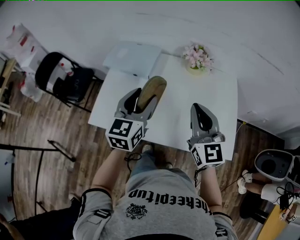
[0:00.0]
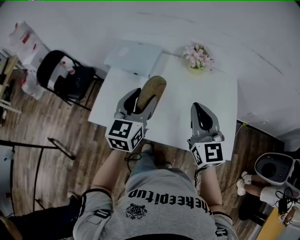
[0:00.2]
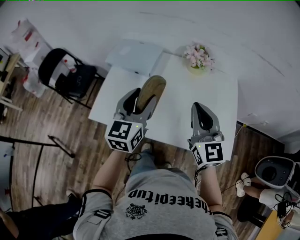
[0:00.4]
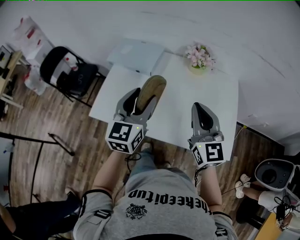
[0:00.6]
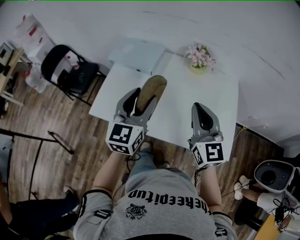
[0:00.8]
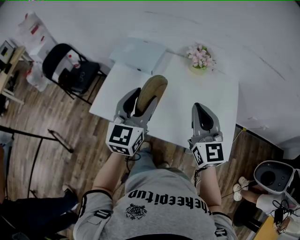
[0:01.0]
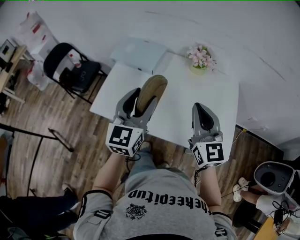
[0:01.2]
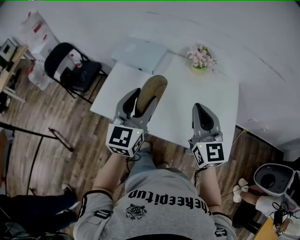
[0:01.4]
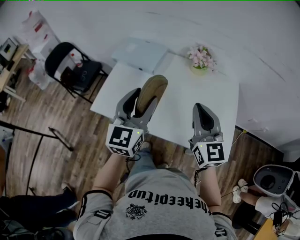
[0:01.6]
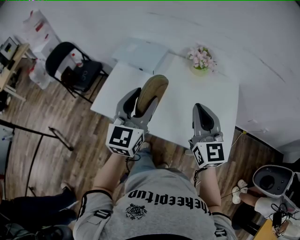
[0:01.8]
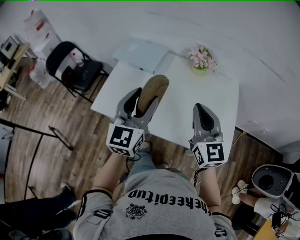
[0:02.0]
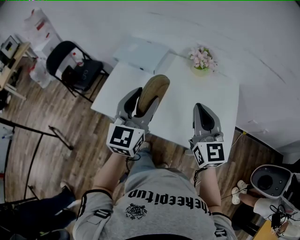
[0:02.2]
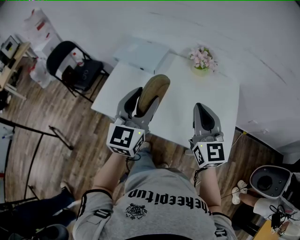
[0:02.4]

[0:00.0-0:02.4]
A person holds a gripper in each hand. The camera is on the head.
0:00.0 to 0:01.2: The left gripper is displaced backward by approximately 5 cm.
0:01.2 to 0:02.4: The grippers stay close to where they were, moving slightly.

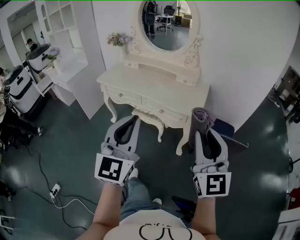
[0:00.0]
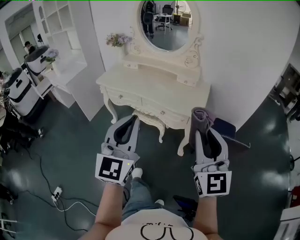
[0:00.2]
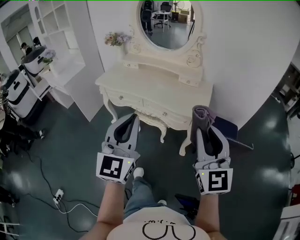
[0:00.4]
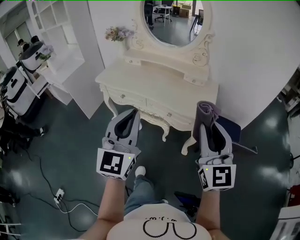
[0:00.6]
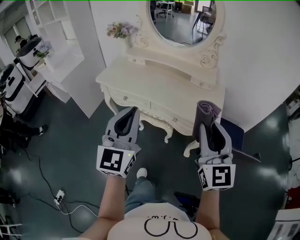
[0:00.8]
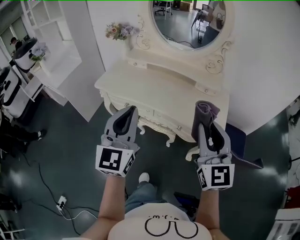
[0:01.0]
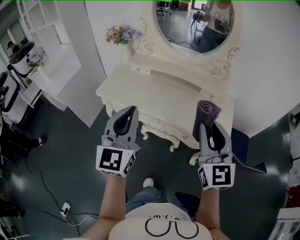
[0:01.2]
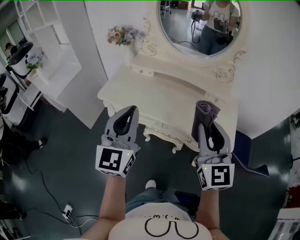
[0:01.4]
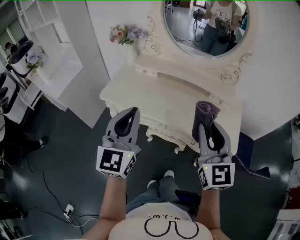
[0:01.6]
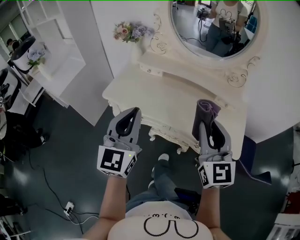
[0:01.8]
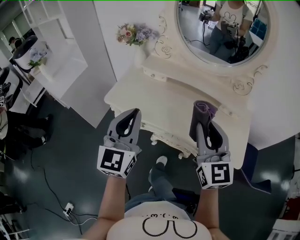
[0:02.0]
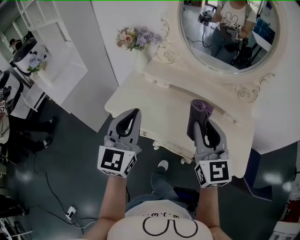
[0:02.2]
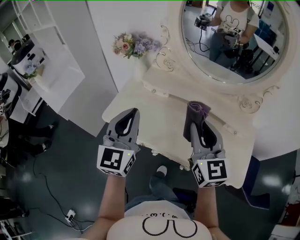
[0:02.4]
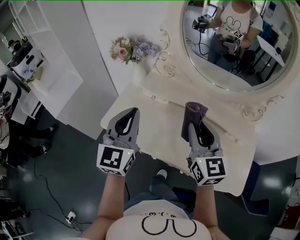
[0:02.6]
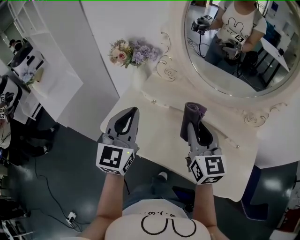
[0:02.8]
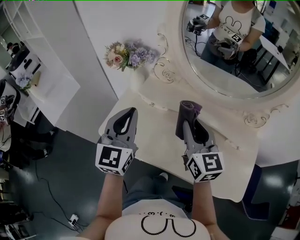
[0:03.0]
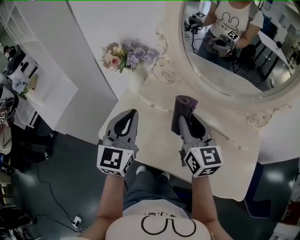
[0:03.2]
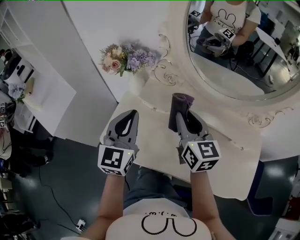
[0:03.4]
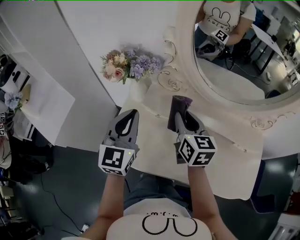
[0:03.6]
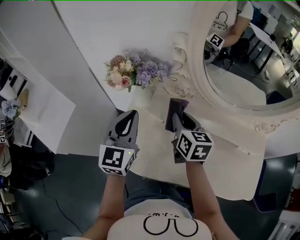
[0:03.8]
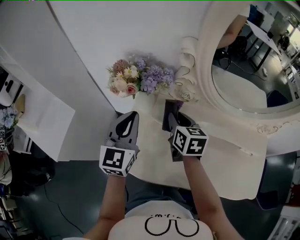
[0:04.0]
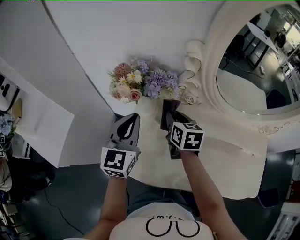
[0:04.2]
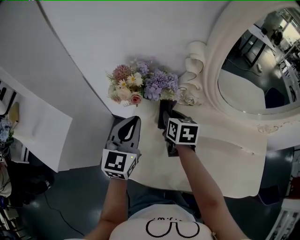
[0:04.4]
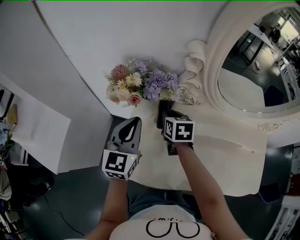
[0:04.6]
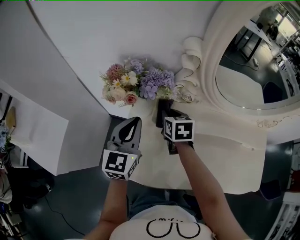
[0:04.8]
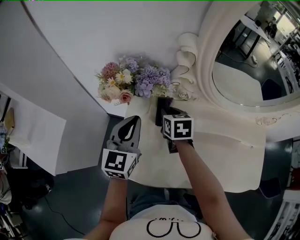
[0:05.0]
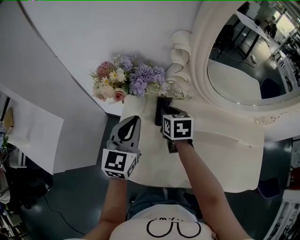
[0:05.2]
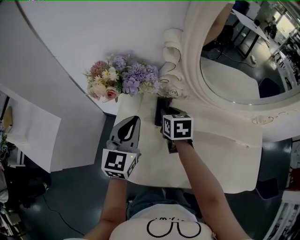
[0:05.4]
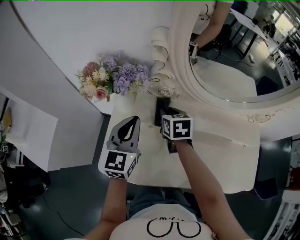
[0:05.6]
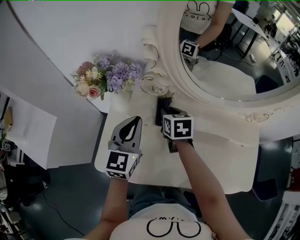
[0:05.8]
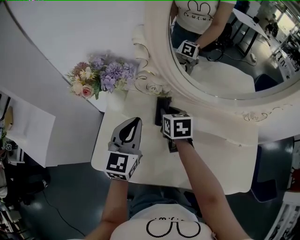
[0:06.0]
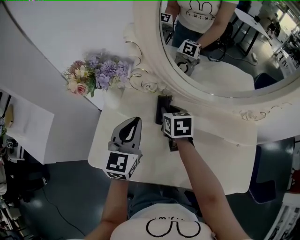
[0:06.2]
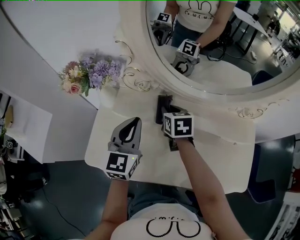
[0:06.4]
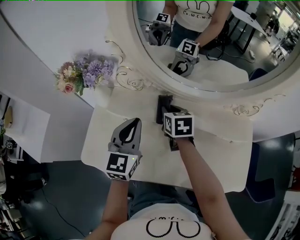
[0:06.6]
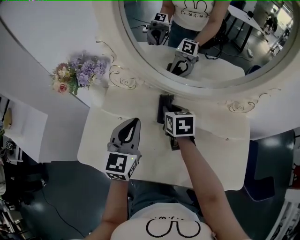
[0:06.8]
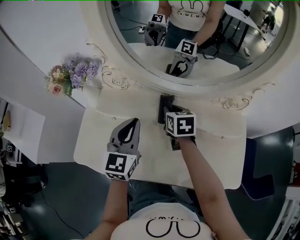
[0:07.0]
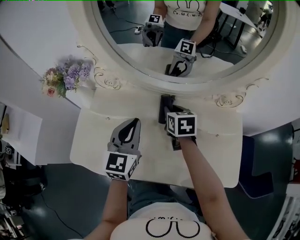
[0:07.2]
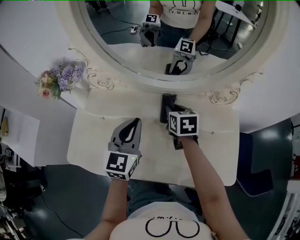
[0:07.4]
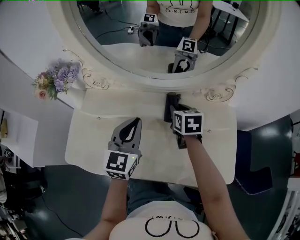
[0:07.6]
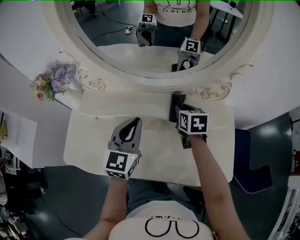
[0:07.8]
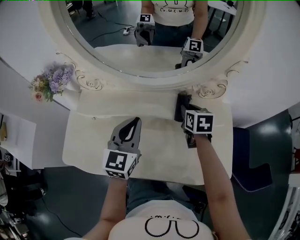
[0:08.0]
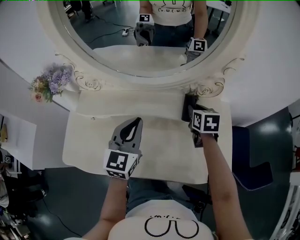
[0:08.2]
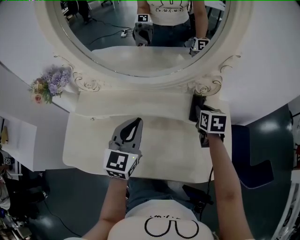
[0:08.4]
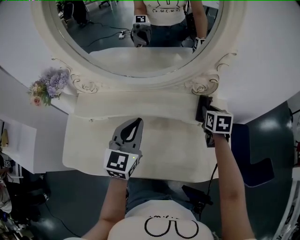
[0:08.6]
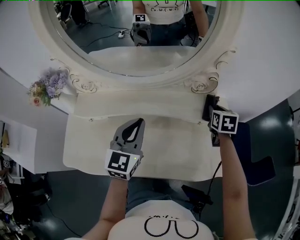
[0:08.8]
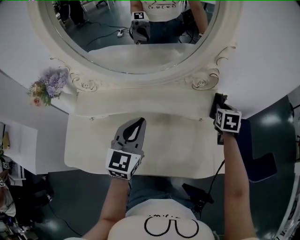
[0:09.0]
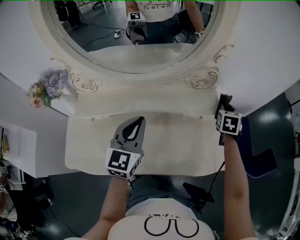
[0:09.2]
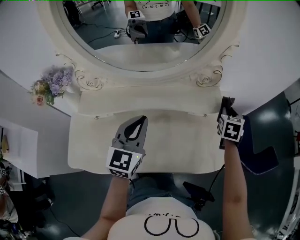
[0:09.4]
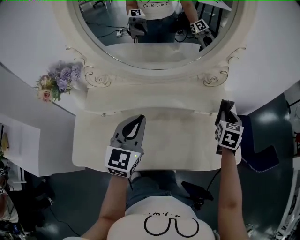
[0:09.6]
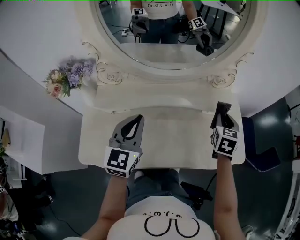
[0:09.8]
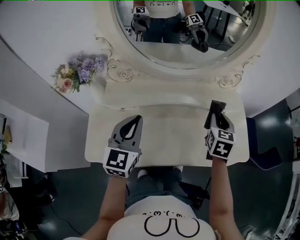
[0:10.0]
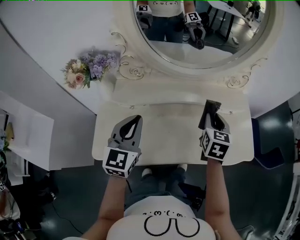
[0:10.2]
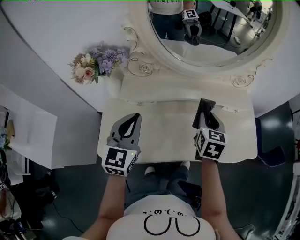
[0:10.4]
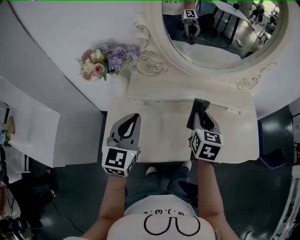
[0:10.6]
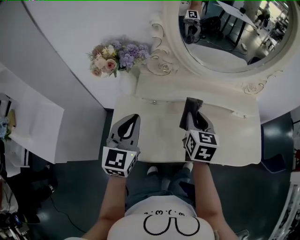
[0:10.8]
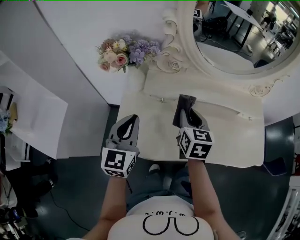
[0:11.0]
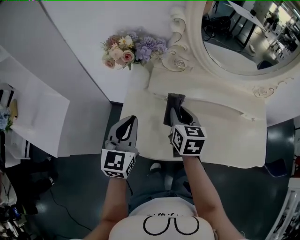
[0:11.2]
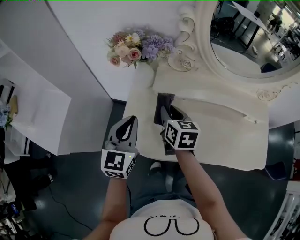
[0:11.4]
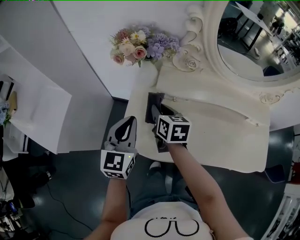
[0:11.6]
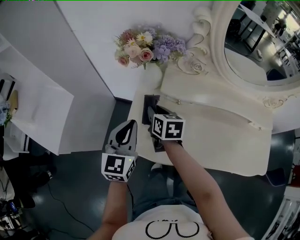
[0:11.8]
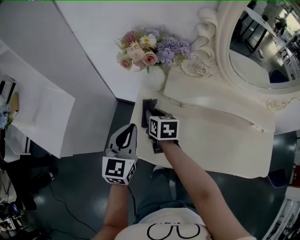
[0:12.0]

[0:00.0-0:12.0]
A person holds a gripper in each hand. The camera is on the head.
0:00.0 to 0:01.6: Both grippers are carried forward and to the left, some 50 cm.
0:01.6 to 0:03.0: The grippers both shift forward by approximately 35 cm. The right gripper swivels approximately 20 degrees.
0:03.0 to 0:04.4: Both grippers travel together forward, to the left and downward, approximately 30 cm. The right gripper tilts its fingers approximately 30 degrees downward.
0:04.4 to 0:06.0: The grippers both shift to the right by about 15 cm.
0:06.0 to 0:07.6: Both grippers move to the right, approximately 25 cm.
0:07.6 to 0:09.0: The left gripper travels to the right by some 10 cm. Meanwhile the right gripper shifts roughly 30 cm to the right, and turns by about 30 degrees.
0:09.0 to 0:10.4: The two grippers go some 35 cm to the left and backward.
0:10.4 to 0:12.0: The left gripper shifts by approximately 20 cm. Meanwhile the right gripper shifts by roughly 40 cm, and swivels roughly 40 degrees.

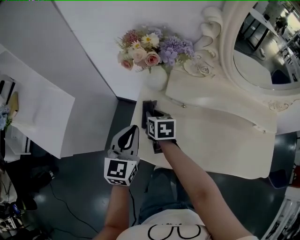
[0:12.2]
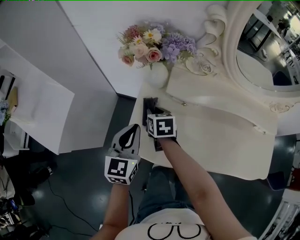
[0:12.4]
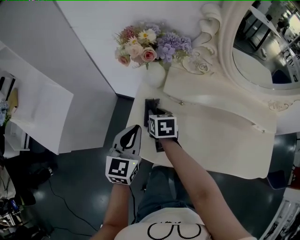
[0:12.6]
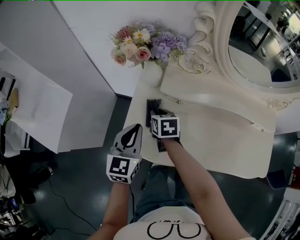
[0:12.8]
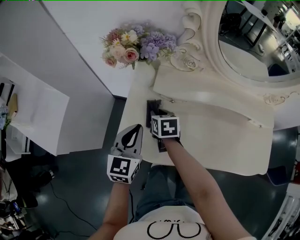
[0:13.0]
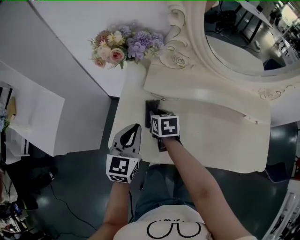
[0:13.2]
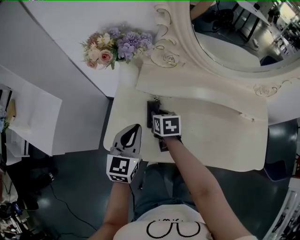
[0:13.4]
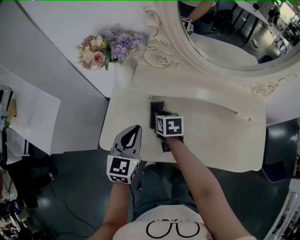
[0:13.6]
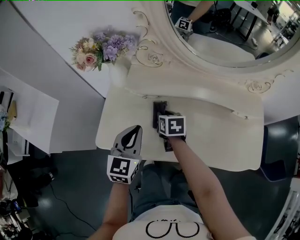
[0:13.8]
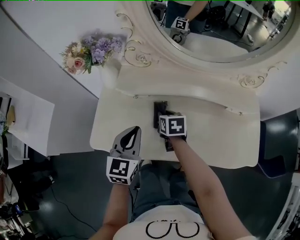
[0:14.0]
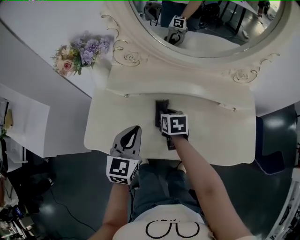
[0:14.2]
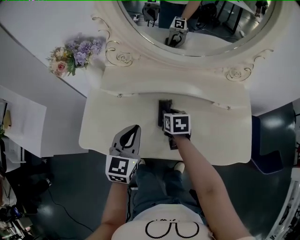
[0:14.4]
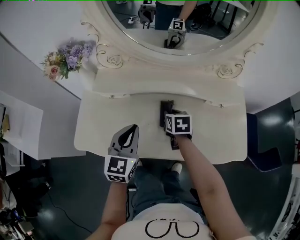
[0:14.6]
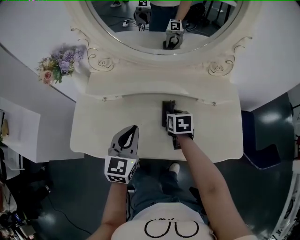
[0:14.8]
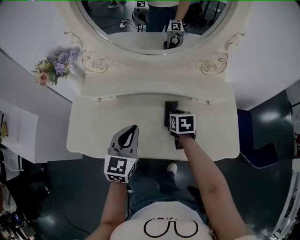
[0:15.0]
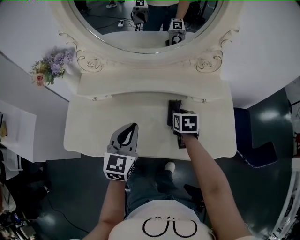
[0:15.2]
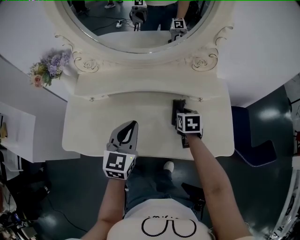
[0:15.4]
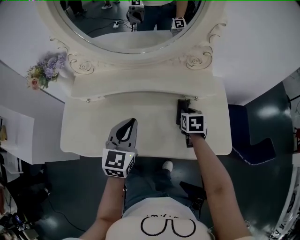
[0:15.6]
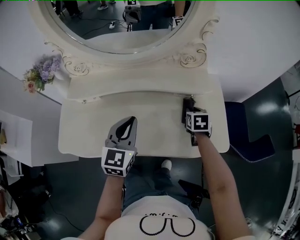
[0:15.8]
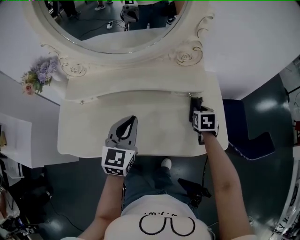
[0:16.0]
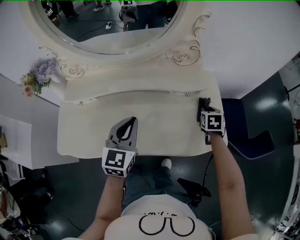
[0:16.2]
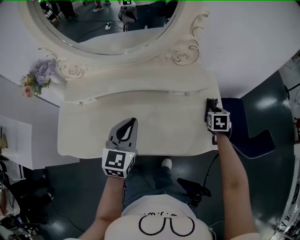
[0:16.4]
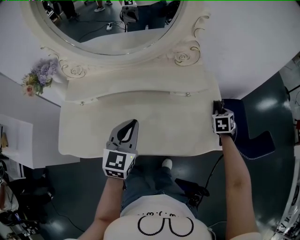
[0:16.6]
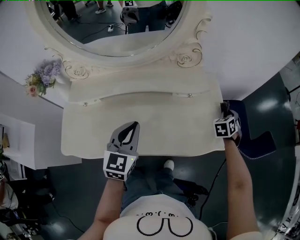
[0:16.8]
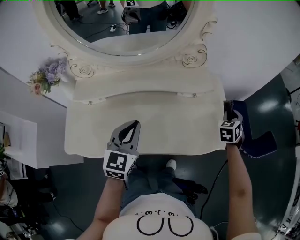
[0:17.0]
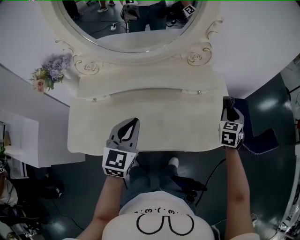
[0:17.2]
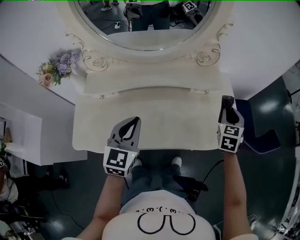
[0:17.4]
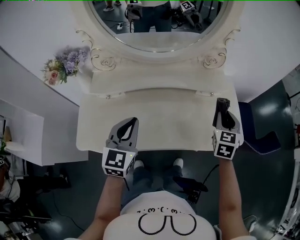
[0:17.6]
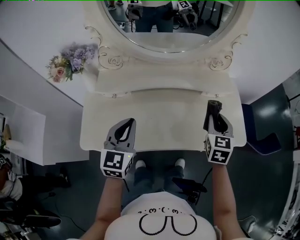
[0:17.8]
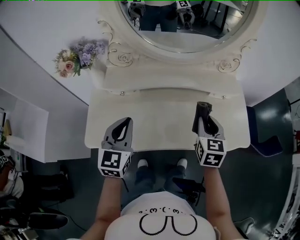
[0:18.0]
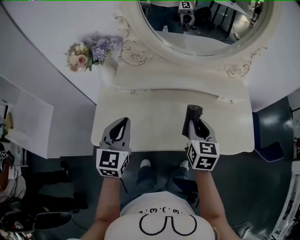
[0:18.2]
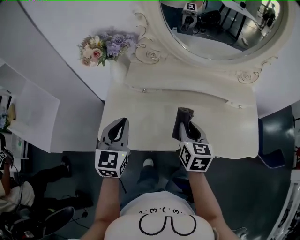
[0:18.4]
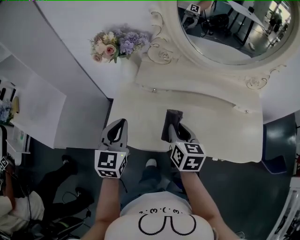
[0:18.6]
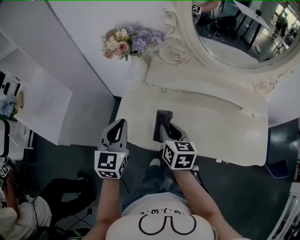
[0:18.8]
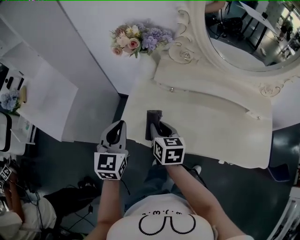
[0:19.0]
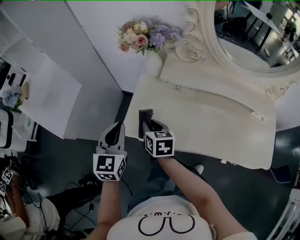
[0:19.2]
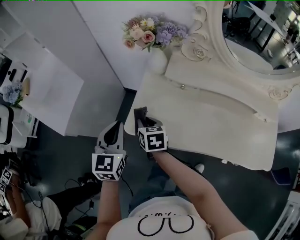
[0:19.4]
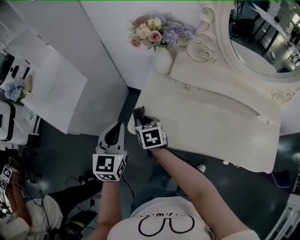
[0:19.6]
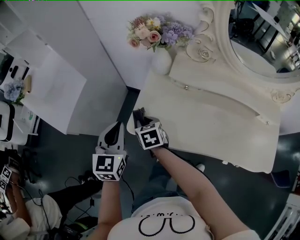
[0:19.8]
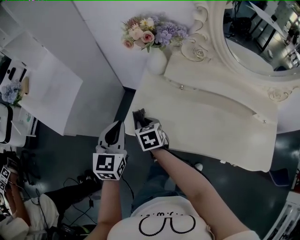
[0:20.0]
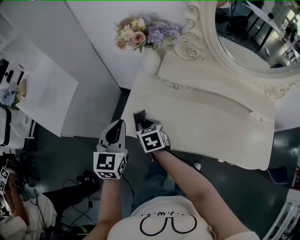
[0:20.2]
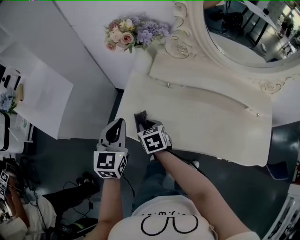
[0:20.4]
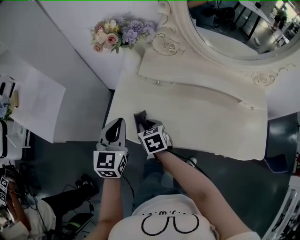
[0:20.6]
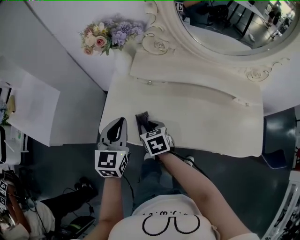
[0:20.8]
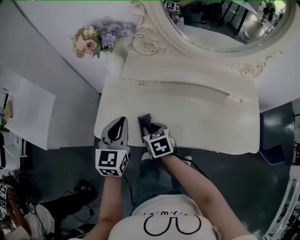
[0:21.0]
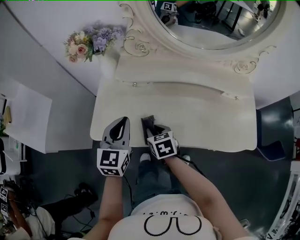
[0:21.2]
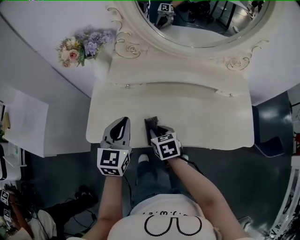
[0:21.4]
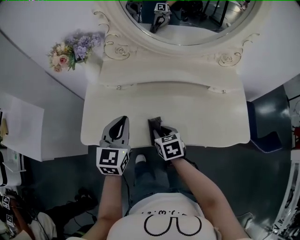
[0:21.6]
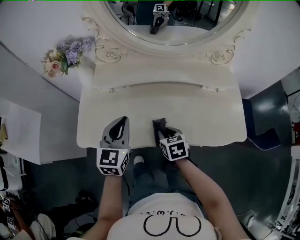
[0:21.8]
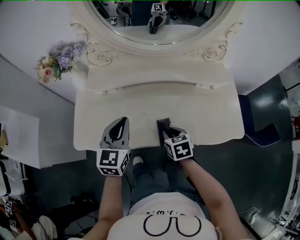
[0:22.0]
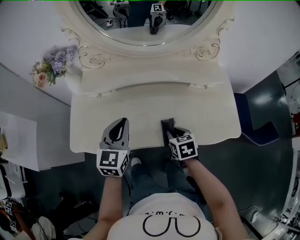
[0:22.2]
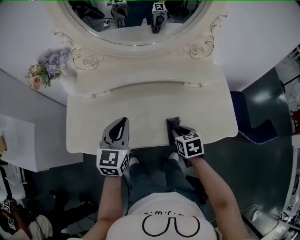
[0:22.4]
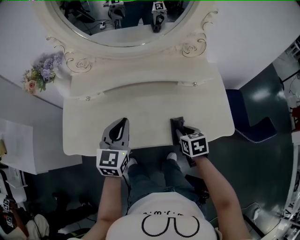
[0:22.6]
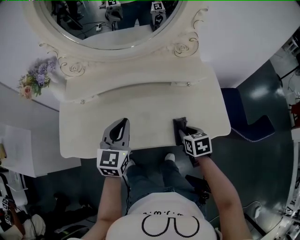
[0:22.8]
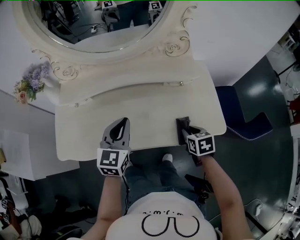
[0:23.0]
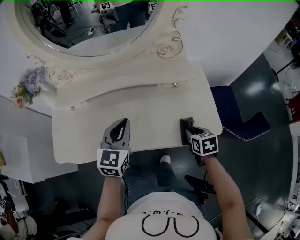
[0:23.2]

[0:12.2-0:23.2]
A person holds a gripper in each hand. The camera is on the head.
0:12.2 to 0:13.8: Both grippers move to the right, roughly 20 cm.
0:13.8 to 0:15.4: Both grippers travel together to the right, approximately 30 cm.
0:15.4 to 0:17.0: The right gripper moves about 25 cm, and rotates some 40 degrees.
0:17.0 to 0:18.4: The right gripper changes place by roughly 50 cm, and turns by approximately 50 degrees; the left gripper ends up approximately 35 cm from where it was.
0:18.4 to 0:20.0: The left gripper moves about 15 cm. Meanwhile the right gripper moves approximately 35 cm, and swivels about 40 degrees.
0:20.0 to 0:21.6: Both grippers move to the right, roughly 30 cm. The left gripper swivels roughly 20 degrees, while the right gripper changes its angle by approximately 20 degrees.
0:21.6 to 0:23.2: The left gripper shifts roughly 25 cm to the right, while the right gripper goes some 40 cm to the right.
